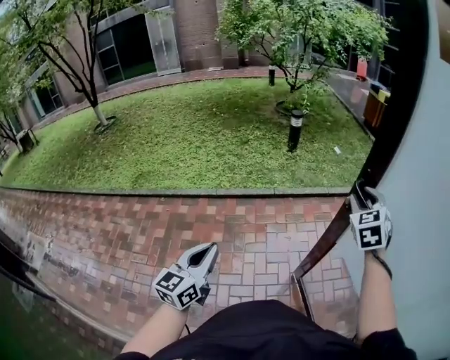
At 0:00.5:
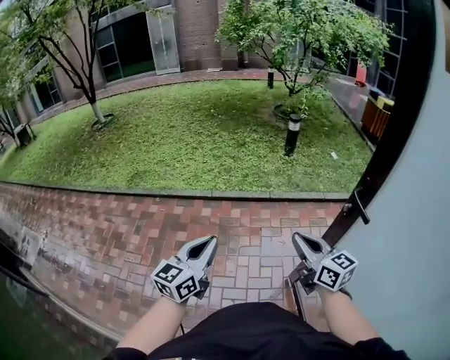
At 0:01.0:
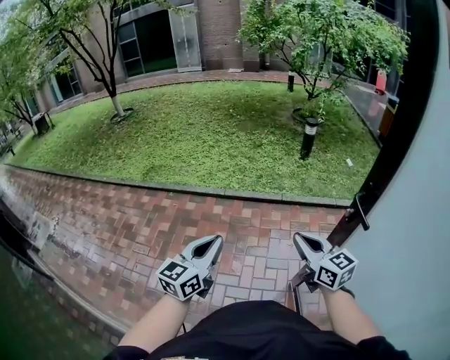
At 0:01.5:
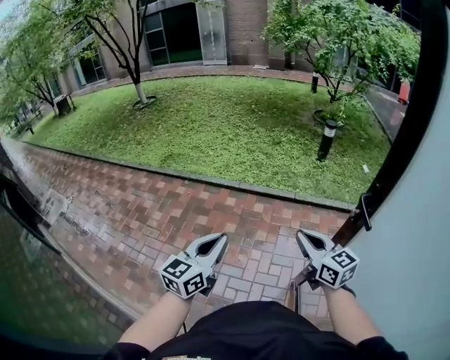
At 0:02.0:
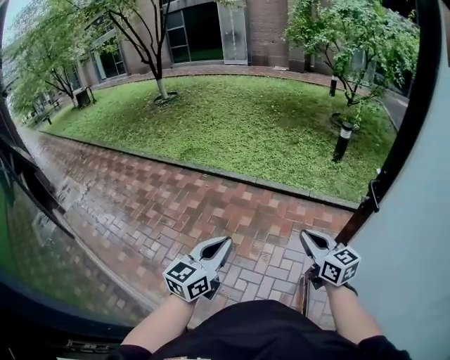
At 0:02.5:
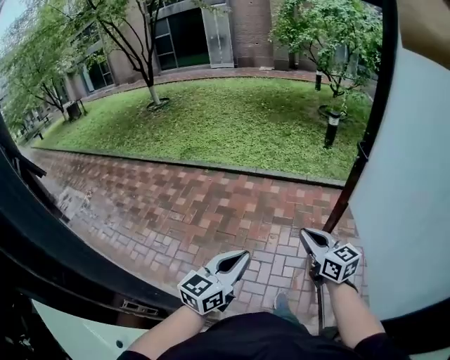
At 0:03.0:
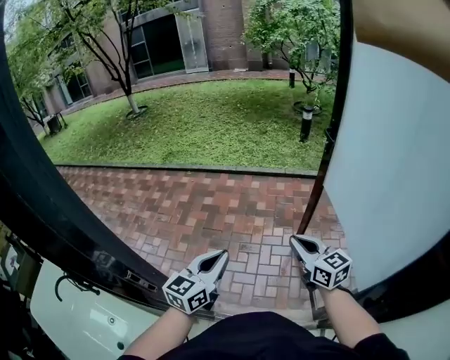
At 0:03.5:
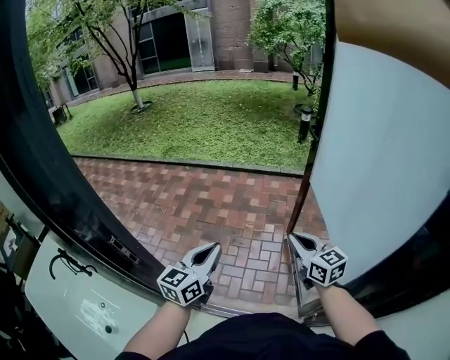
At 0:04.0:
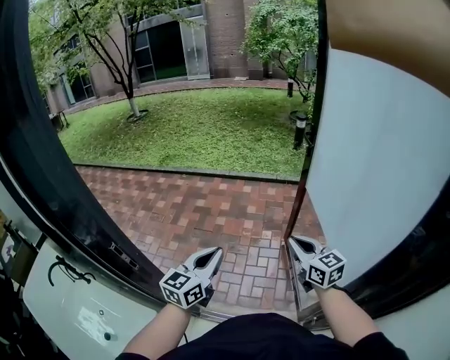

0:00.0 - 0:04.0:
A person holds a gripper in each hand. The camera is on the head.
0:00.0 - 0:02.0: The left gripper moves approximately 15 cm; the right gripper changes place by some 25 cm, changes its angle by some 70 degrees, and closes up.
0:02.0 - 0:04.0: The grippers both shift backward by some 40 cm.

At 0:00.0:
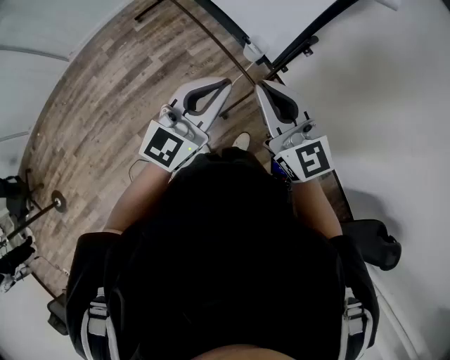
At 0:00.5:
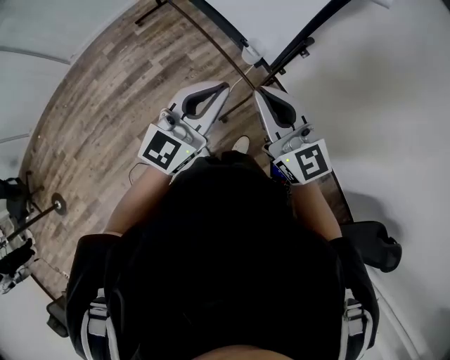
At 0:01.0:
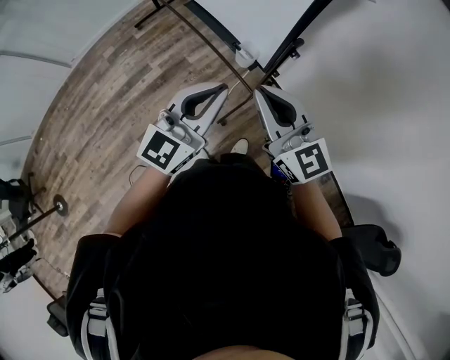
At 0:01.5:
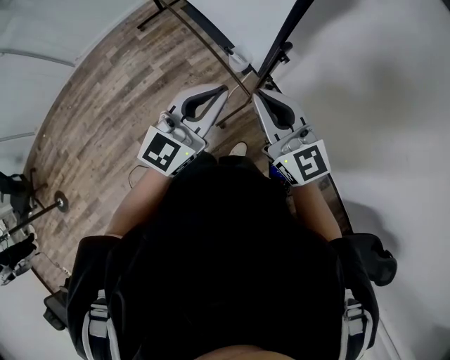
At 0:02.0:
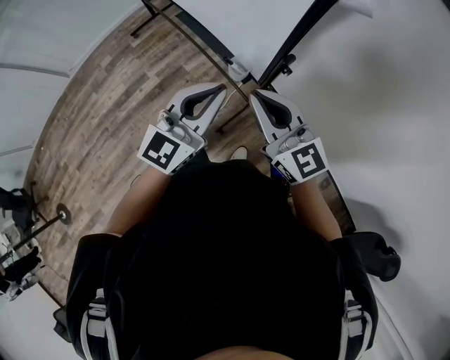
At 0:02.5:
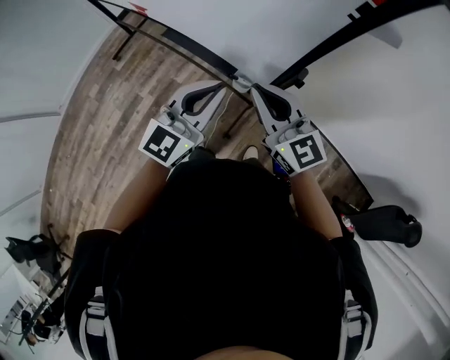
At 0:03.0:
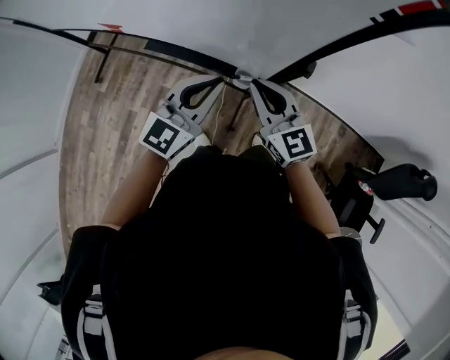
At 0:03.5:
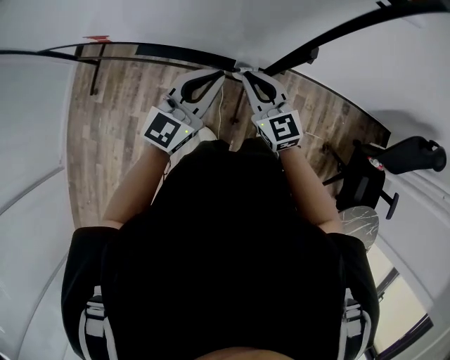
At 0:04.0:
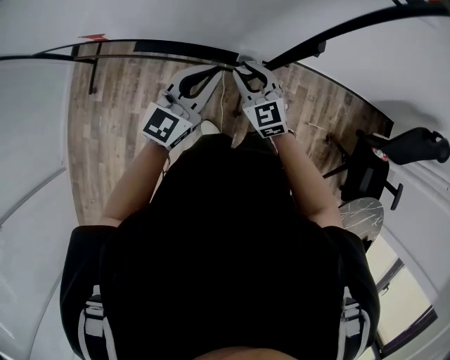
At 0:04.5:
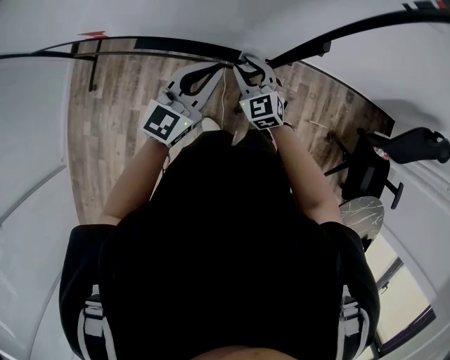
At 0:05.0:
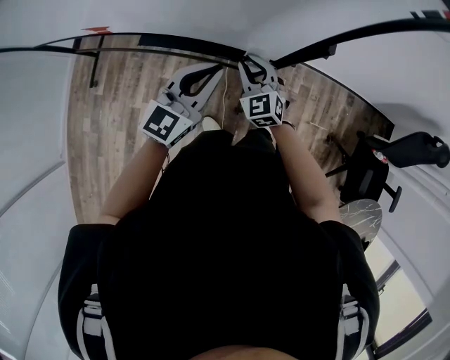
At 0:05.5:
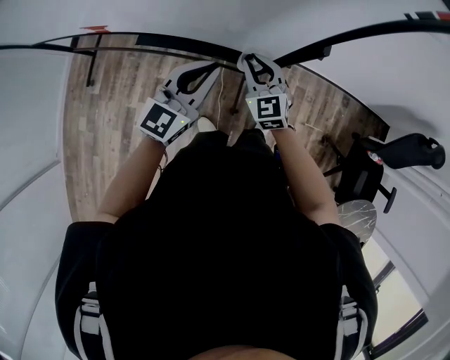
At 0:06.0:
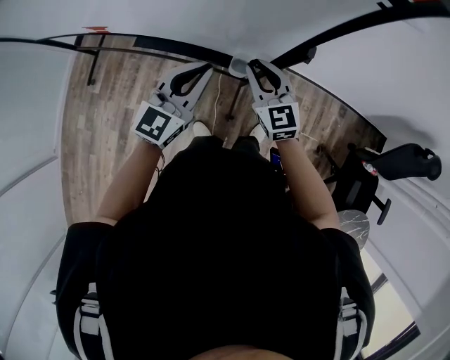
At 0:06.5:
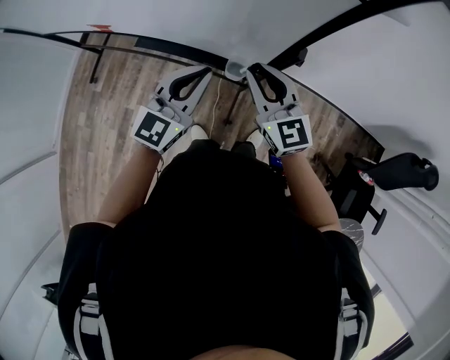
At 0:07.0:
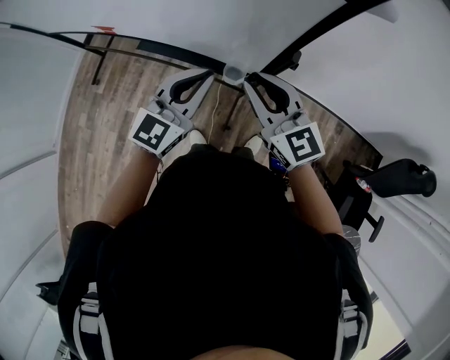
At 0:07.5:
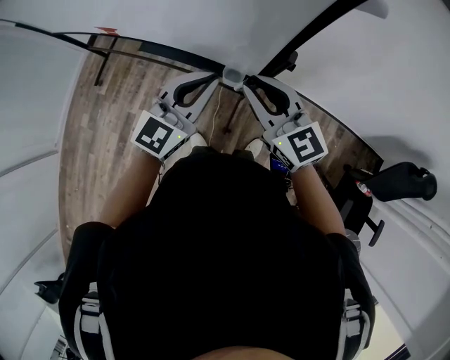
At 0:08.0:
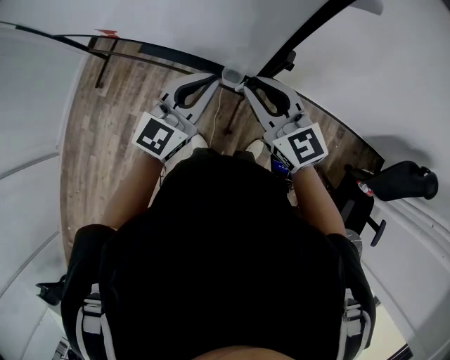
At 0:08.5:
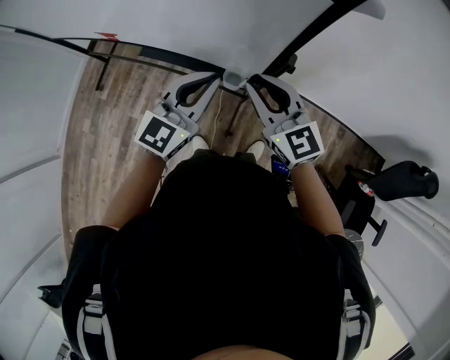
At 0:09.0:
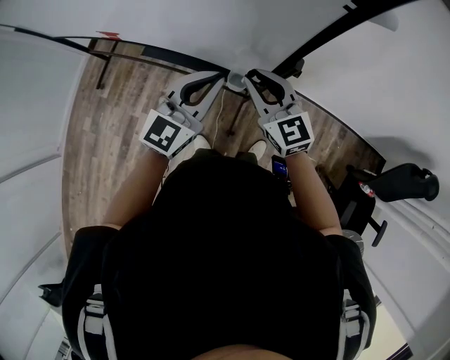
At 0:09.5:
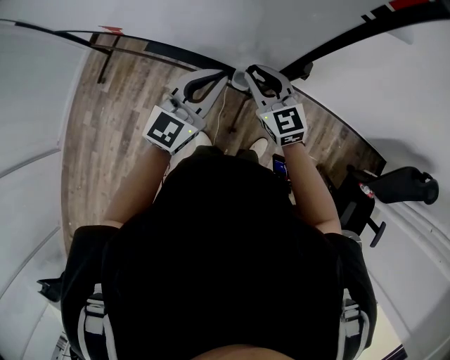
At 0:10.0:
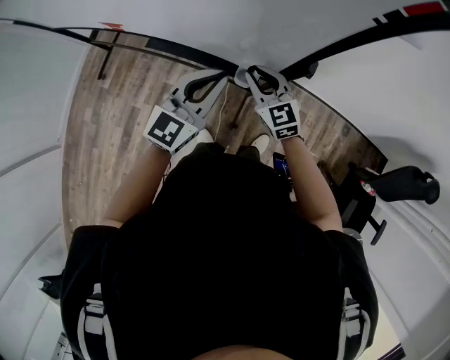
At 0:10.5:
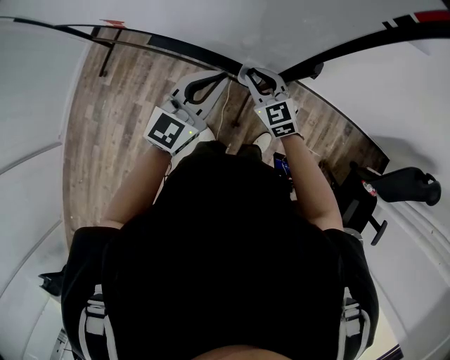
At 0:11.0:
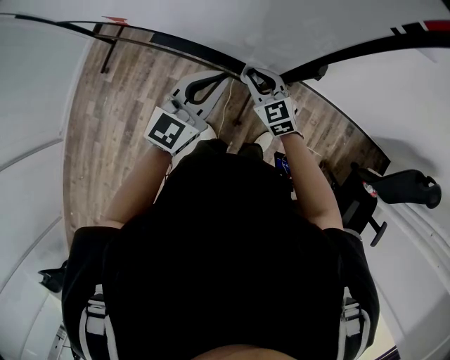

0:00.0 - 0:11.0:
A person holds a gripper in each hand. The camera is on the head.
0:00.0 - 0:02.0: Both grippers move forward and to the right, about 10 cm.
0:02.0 - 0:03.5: The left gripper changes place by roughly 15 cm, and turns by roughly 40 degrees. The right gripper shifts by about 20 cm, and turns by approximately 40 degrees.
0:03.5 - 0:05.5: The right gripper moves downward, about 5 cm.
0:05.5 - 0:07.5: The right gripper heads upward and backward, covering roughly 20 cm, and turns by some 30 degrees. The left gripper heads upward and to the right, covering approximately 10 cm.
0:07.5 - 0:09.0: The right gripper ends up about 5 cm from where it was.
0:09.0 - 0:11.0: The right gripper heads downward, covering about 15 cm.

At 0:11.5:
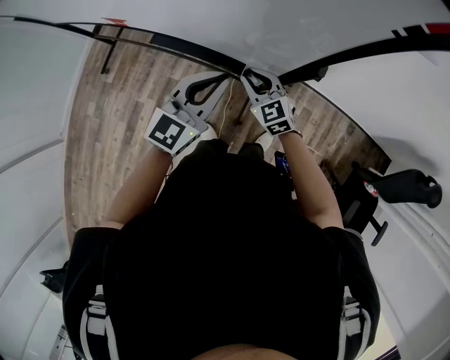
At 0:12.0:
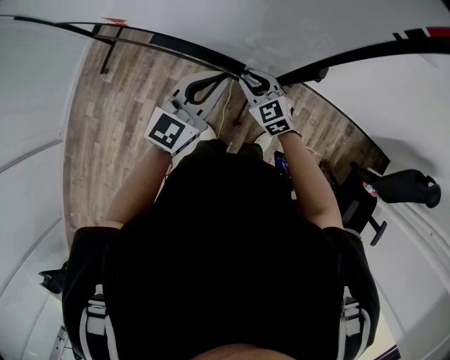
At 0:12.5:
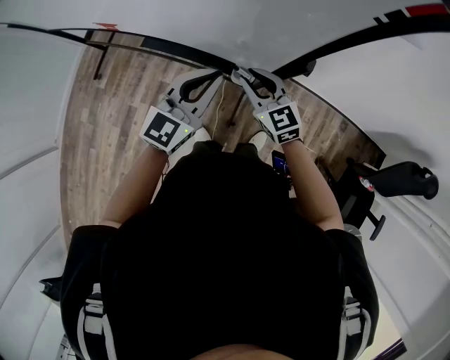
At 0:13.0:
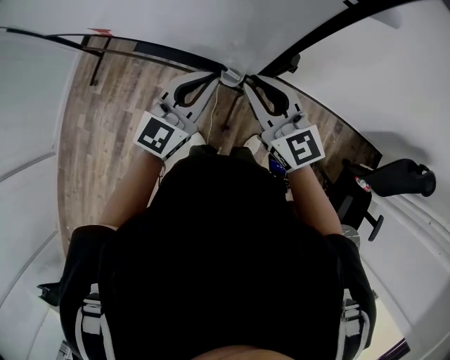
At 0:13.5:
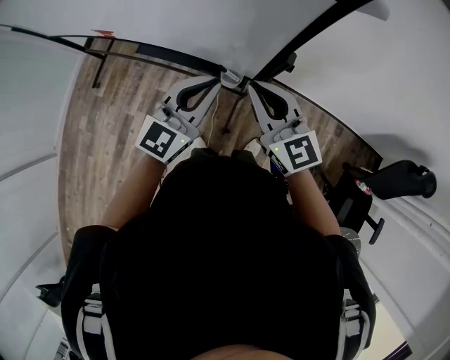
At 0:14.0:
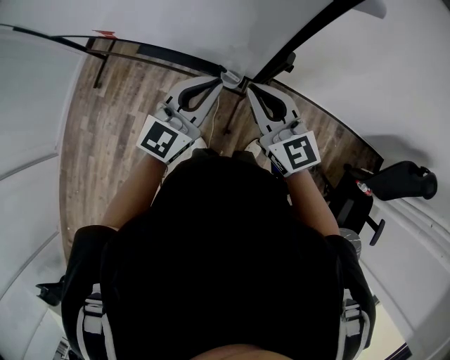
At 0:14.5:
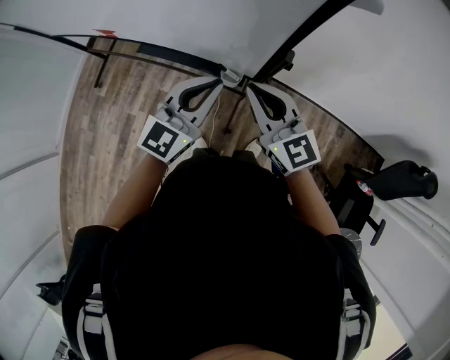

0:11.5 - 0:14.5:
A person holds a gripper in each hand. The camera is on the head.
0:11.5 - 0:13.0: The right gripper travels upward by roughly 20 cm, and swivels about 20 degrees.
0:13.0 - 0:14.5: The grippers make only small movements.

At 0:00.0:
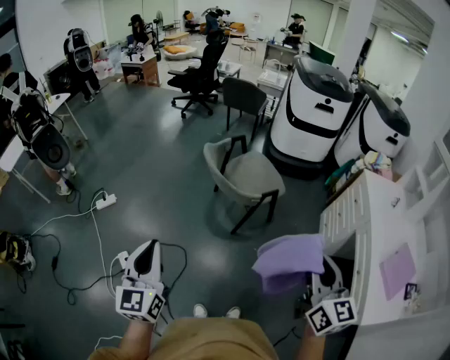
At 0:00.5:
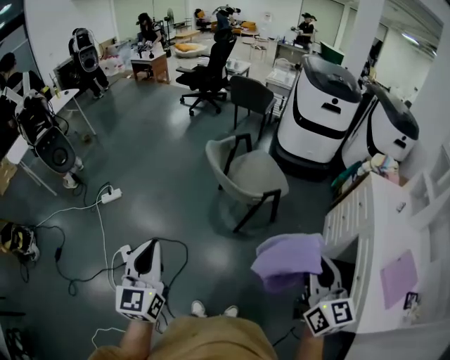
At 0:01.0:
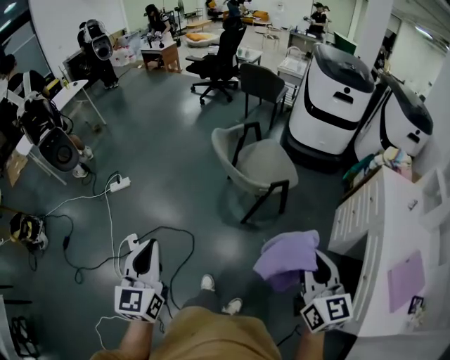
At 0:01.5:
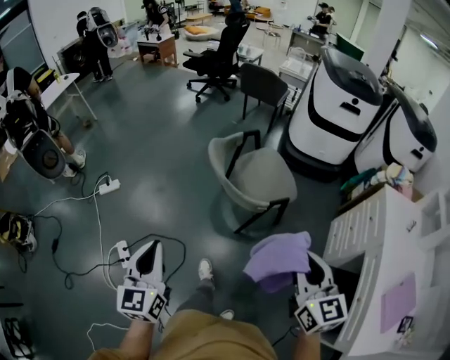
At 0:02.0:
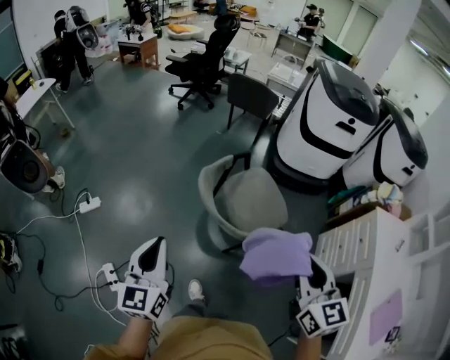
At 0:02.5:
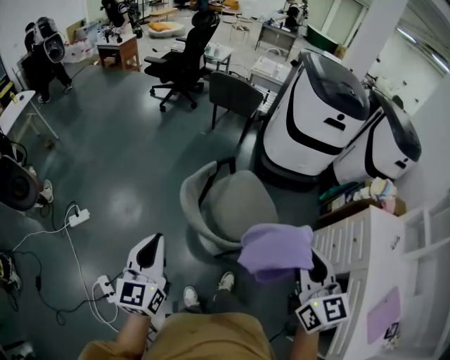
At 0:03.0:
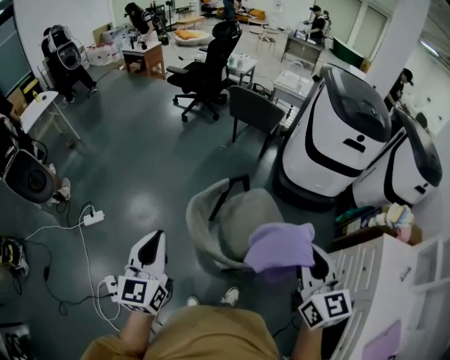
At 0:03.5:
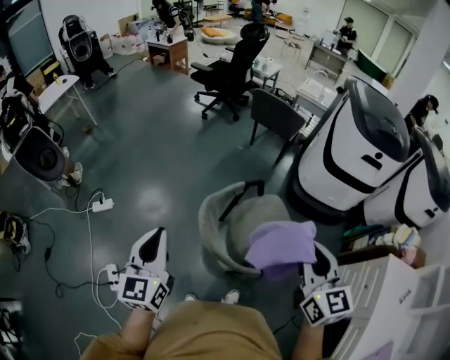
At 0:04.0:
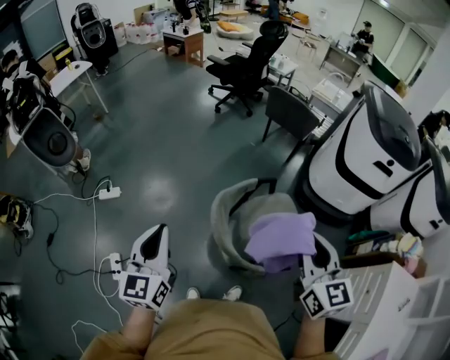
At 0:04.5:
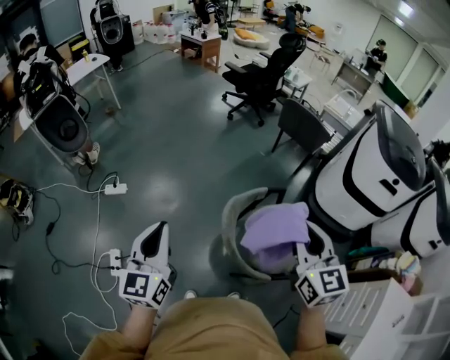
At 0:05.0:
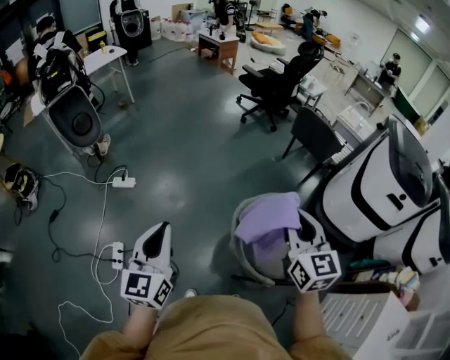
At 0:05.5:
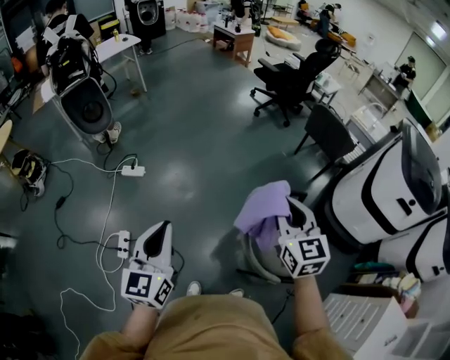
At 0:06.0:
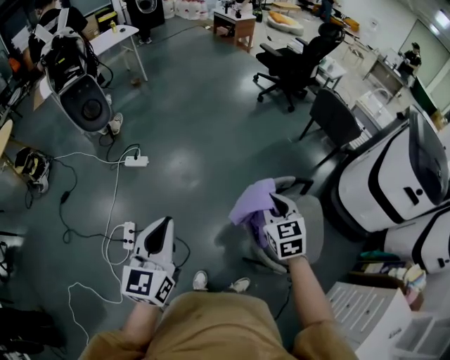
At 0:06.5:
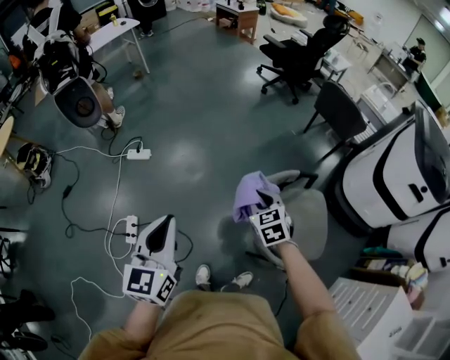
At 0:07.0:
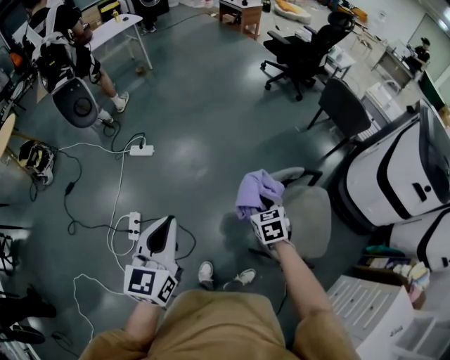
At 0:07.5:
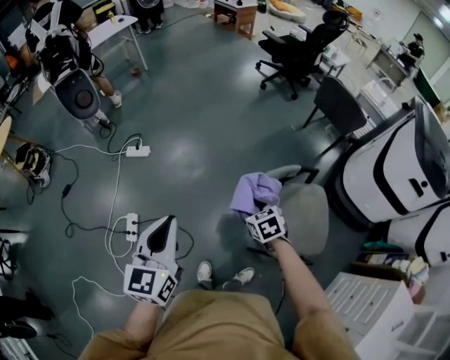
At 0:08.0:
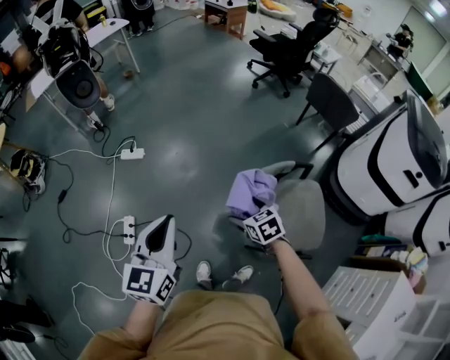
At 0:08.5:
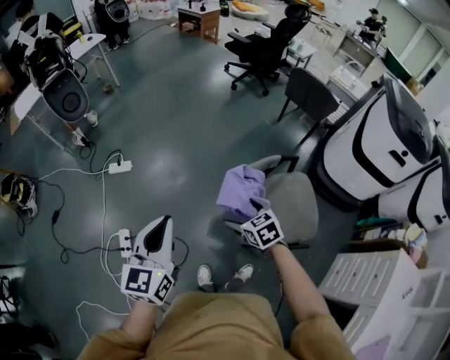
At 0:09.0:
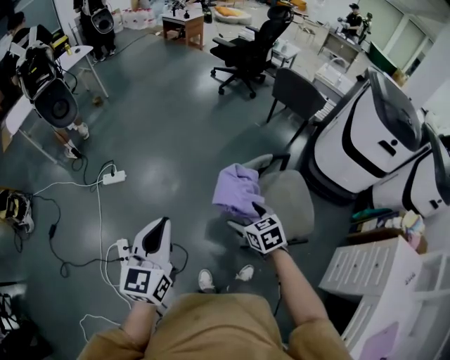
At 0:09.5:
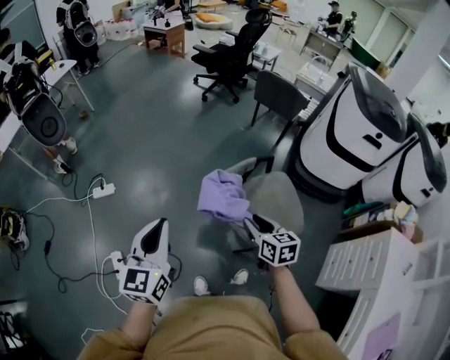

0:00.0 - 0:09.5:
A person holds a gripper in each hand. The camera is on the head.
0:00.0 - 0:02.0: The grippers both shift forward by about 40 cm.
0:02.0 - 0:04.0: The right gripper heads forward, covering some 30 cm. Meanwhile the left gripper travels forward by roughly 15 cm.
0:04.0 - 0:05.5: The left gripper is displaced to the left by roughly 15 cm; the right gripper shifts some 25 cm to the left and forward, and swivels some 20 degrees.
0:05.5 - 0:07.5: The right gripper is displaced downward by roughly 30 cm, tilts its fingers approximately 40 degrees downward, and opens up.
0:07.5 - 0:09.5: The right gripper shifts approximately 20 cm backward, upward and to the right, changes its angle by approximately 40 degrees, and opens and closes again.
